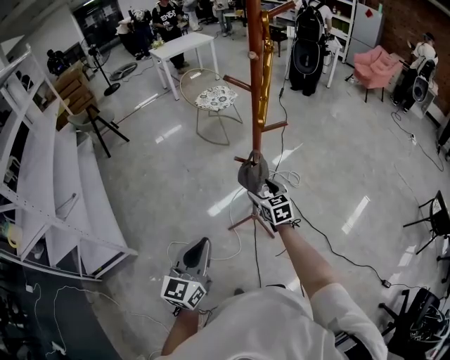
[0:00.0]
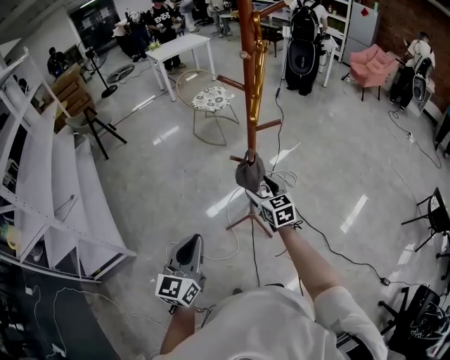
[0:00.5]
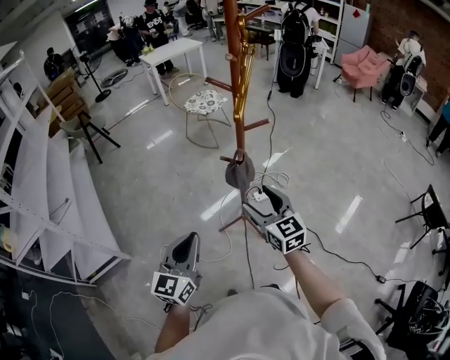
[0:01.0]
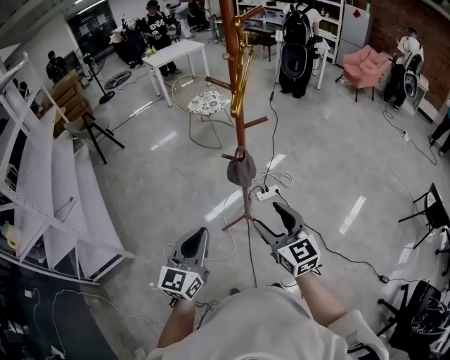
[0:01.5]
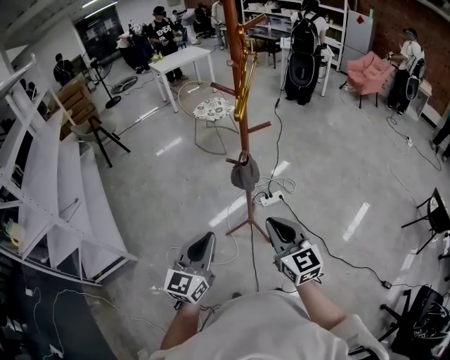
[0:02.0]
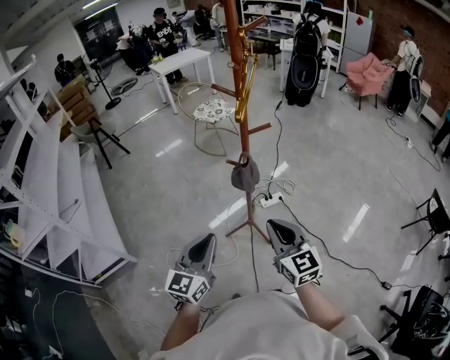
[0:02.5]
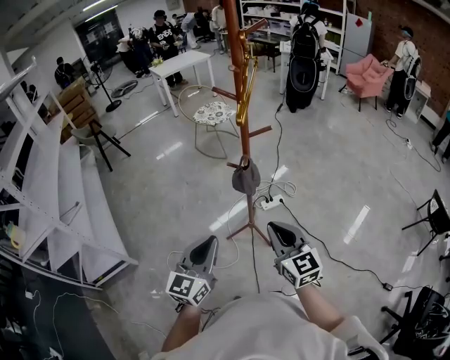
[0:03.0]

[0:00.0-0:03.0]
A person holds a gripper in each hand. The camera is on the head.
0:00.0 to 0:01.5: The right gripper travels backward and upward by about 25 cm. The left gripper changes place by about 5 cm.
0:01.5 to 0:03.0: The right gripper closes its fingers.

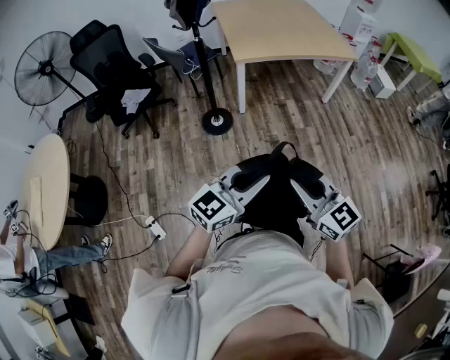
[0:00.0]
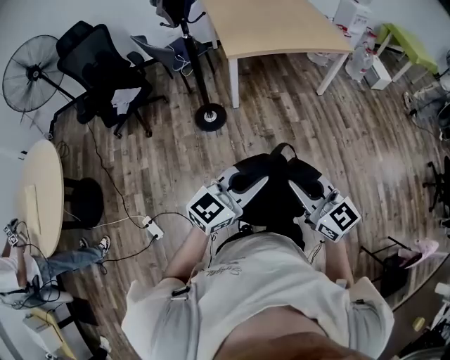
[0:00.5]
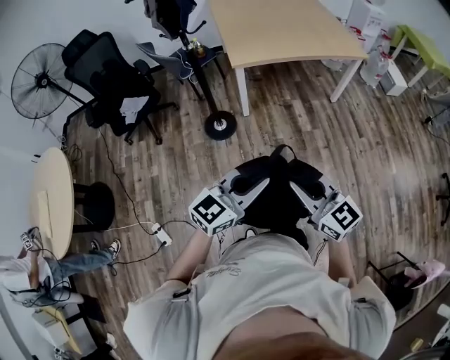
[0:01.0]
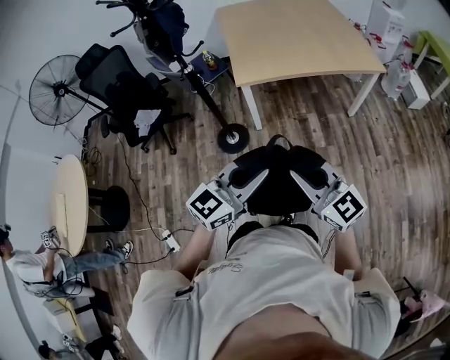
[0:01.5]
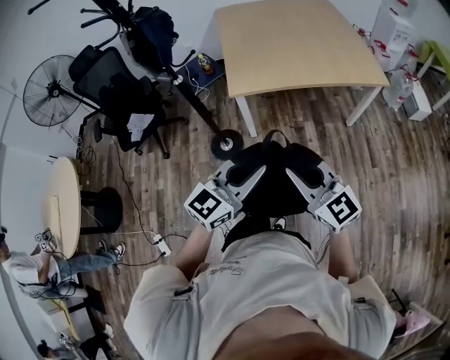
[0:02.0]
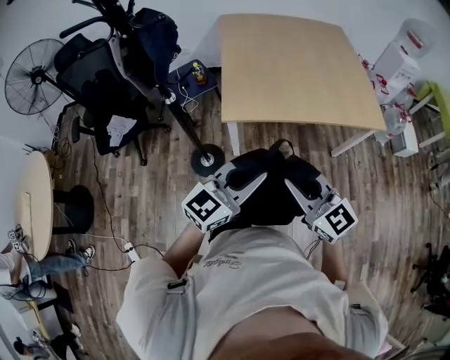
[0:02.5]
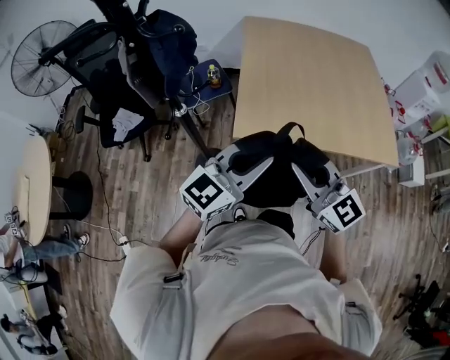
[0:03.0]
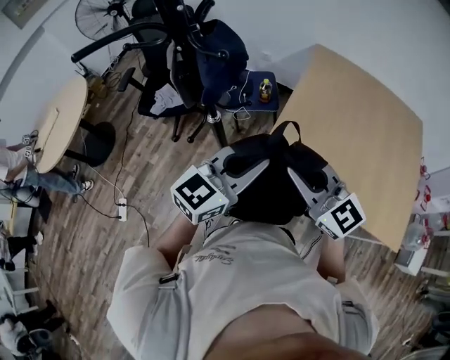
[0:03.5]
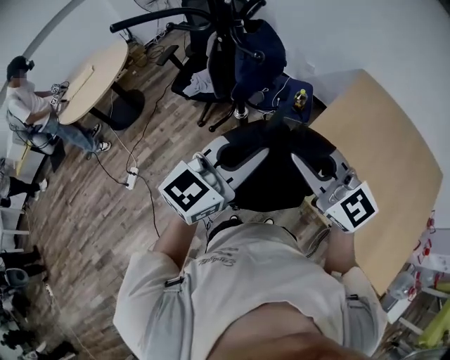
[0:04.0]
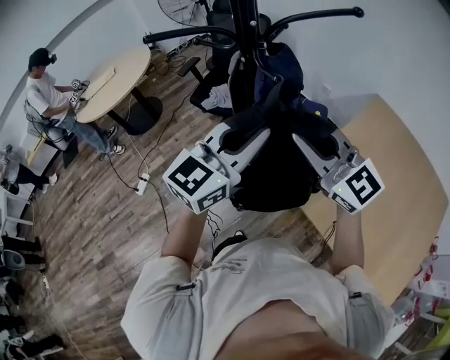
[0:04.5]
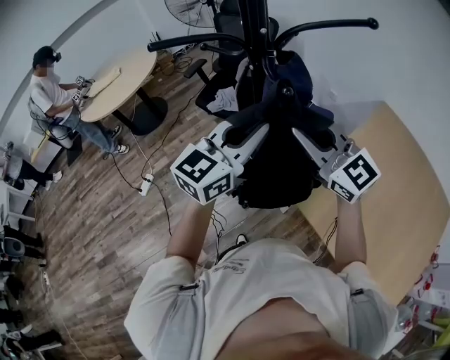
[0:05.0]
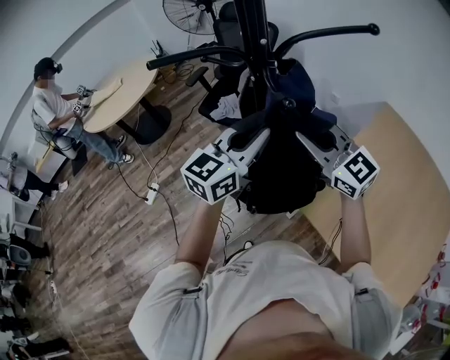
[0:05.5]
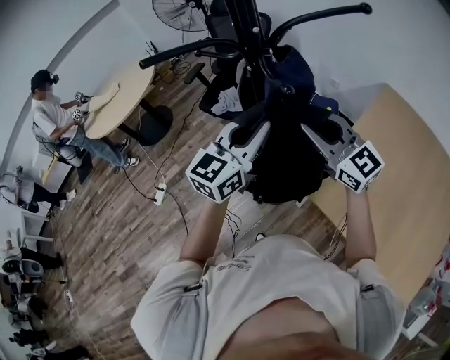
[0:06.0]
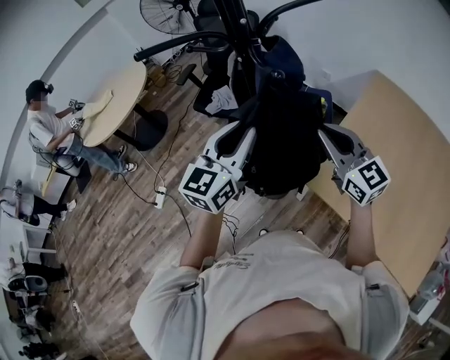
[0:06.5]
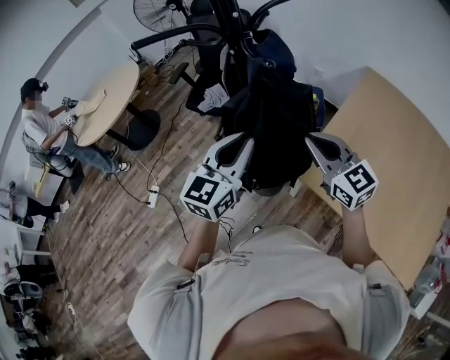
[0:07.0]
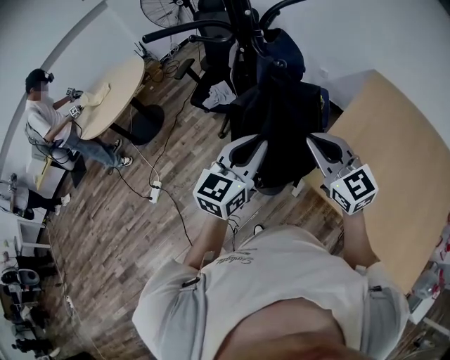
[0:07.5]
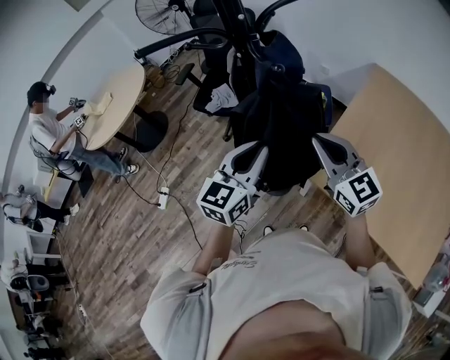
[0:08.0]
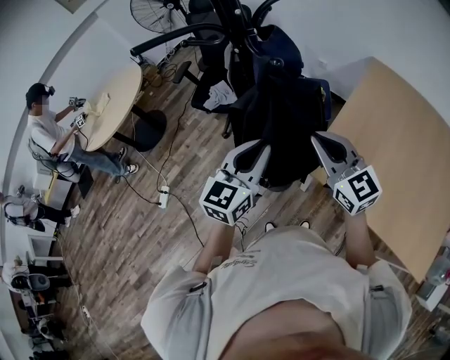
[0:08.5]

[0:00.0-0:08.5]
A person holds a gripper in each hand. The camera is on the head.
0:00.0 to 0:02.0: The two grippers go roughly 35 cm forward.
0:02.0 to 0:04.0: The right gripper shifts by roughly 50 cm, and rotates approximately 50 degrees. The left gripper moves approximately 40 cm, and swivels roughly 50 degrees.
0:04.0 to 0:06.5: The left gripper travels forward and to the left by about 10 cm, and swivels about 20 degrees. The right gripper heads forward, covering roughly 10 cm.
0:06.5 to 0:08.5: The left gripper shifts approximately 5 cm downward; the right gripper shifts by roughly 5 cm.

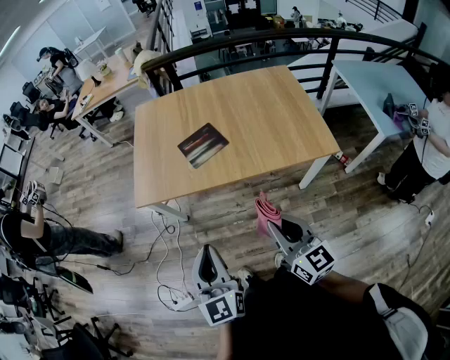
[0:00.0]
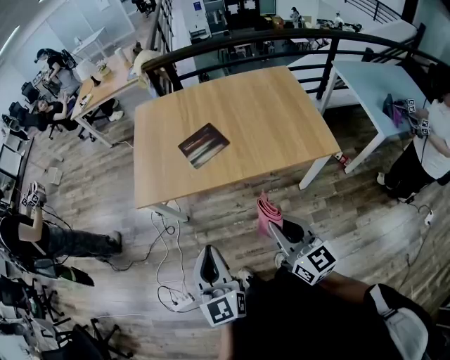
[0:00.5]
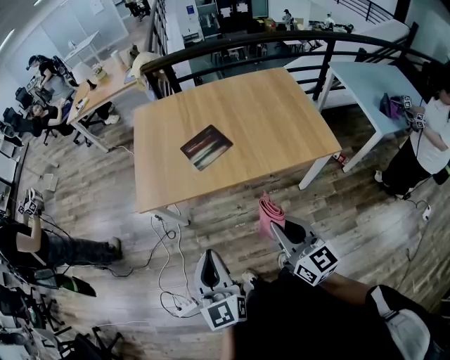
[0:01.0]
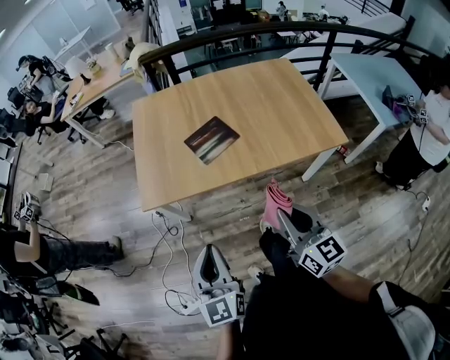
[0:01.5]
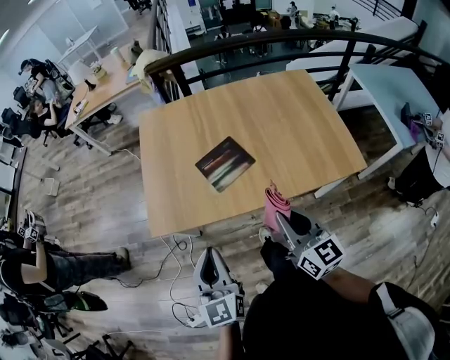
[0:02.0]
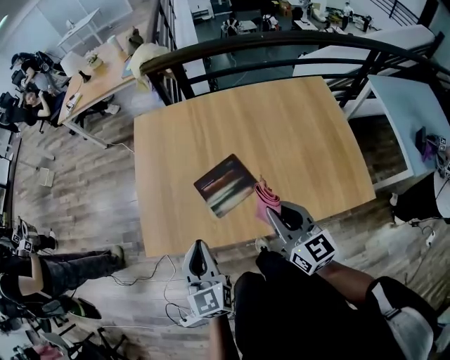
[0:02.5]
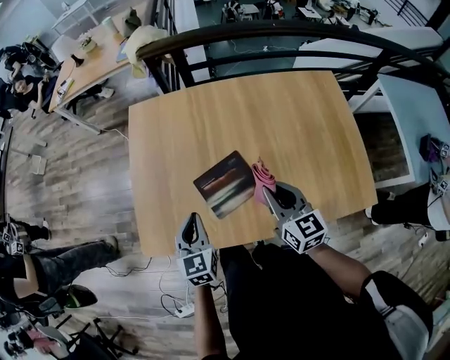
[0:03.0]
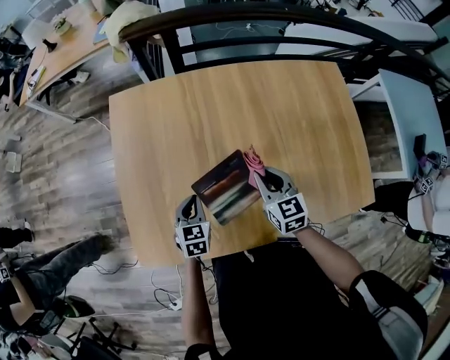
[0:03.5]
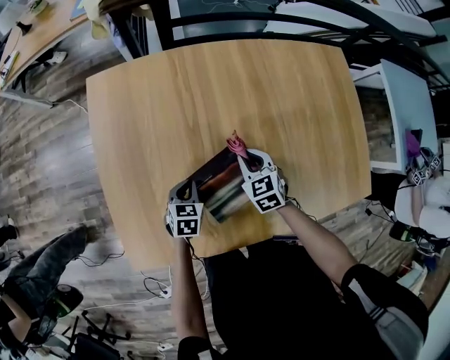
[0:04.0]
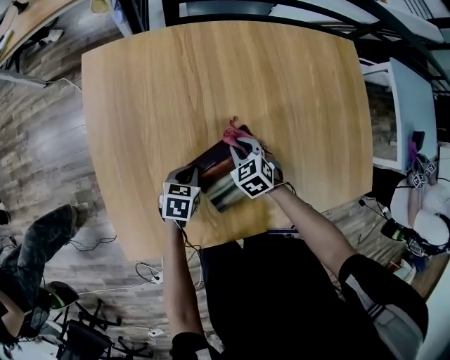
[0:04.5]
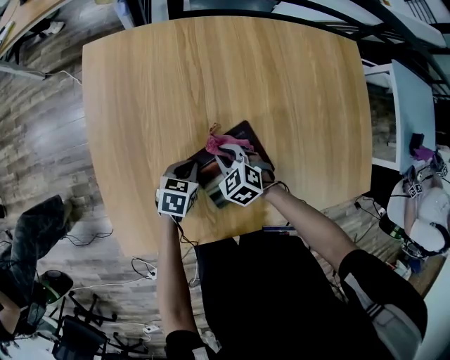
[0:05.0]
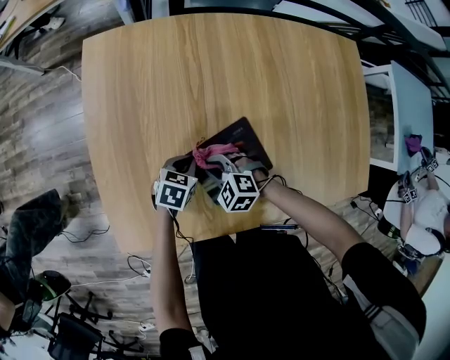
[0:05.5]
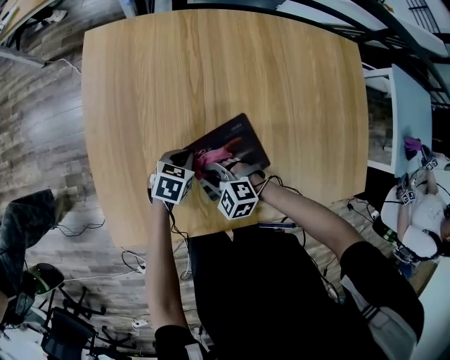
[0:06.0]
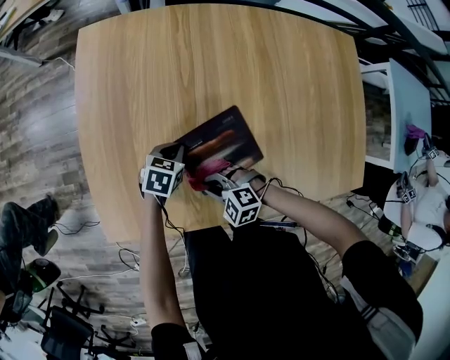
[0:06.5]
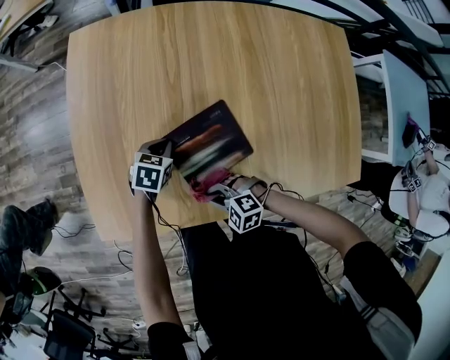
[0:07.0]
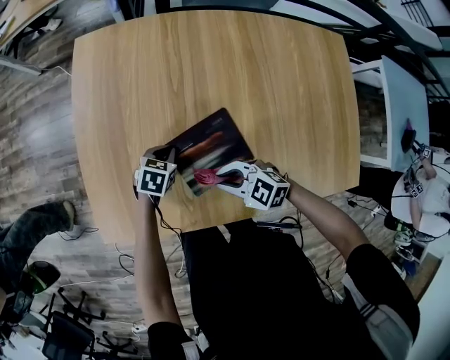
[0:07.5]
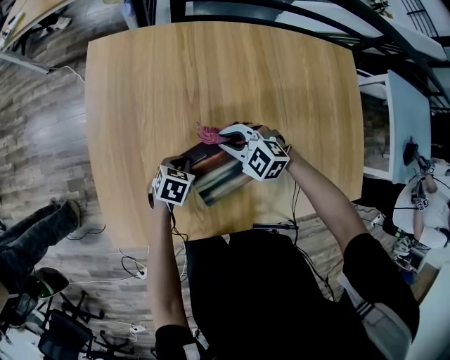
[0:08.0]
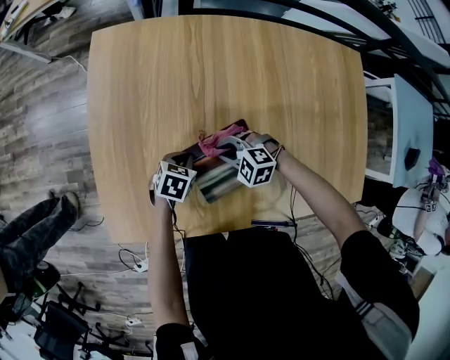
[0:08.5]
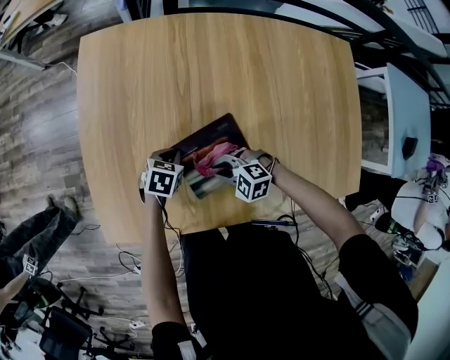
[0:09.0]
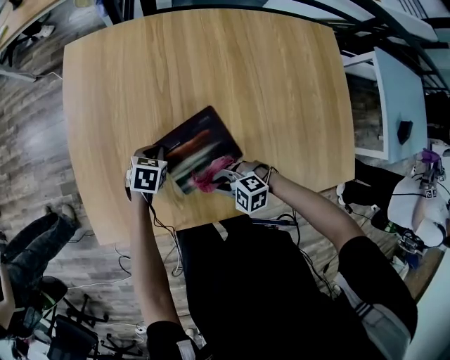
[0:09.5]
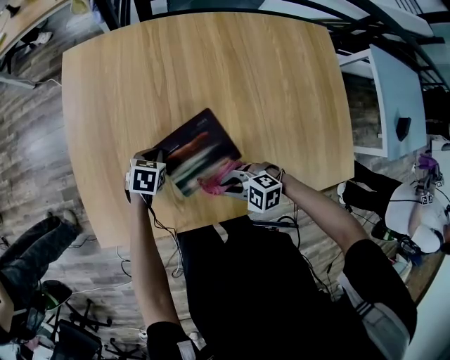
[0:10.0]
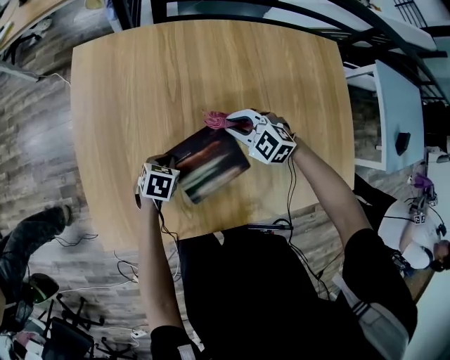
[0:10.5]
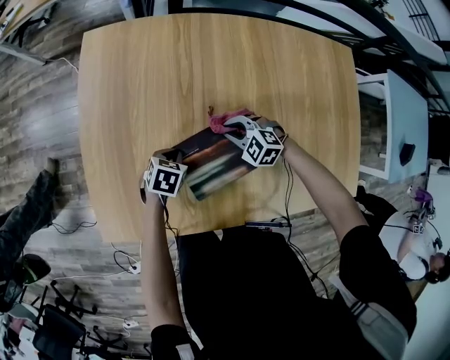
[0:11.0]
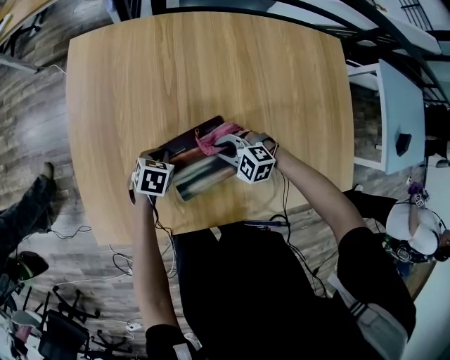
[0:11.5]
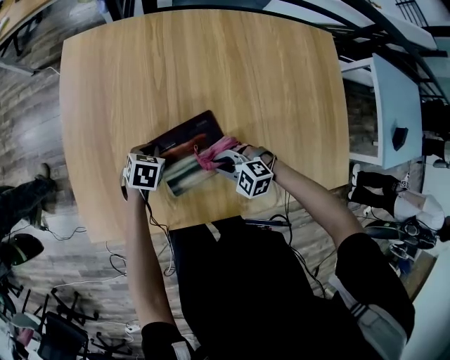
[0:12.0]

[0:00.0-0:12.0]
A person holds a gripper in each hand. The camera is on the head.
0:00.0 to 0:02.0: The two grippers go about 20 cm forward.
0:02.0 to 0:04.0: The pair of grippers is taken forward, some 40 cm. The grippers both shift downward by about 35 cm. The left gripper tilts its fingers about 50 degrees downward. The right gripper tips its fingers downward by roughly 40 degrees.
0:04.0 to 0:06.0: The right gripper changes place by approximately 20 cm, and rotates roughly 60 degrees.
0:06.0 to 0:08.0: The right gripper changes place by about 15 cm.
0:08.0 to 0:10.0: The right gripper ends up some 25 cm from where it was, and swivels roughly 20 degrees.

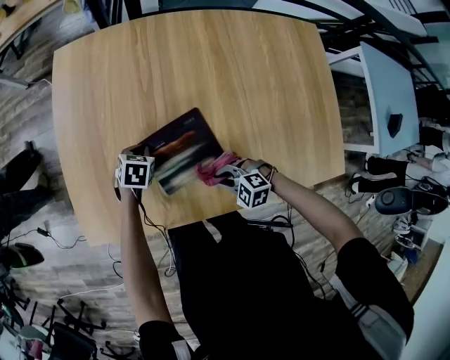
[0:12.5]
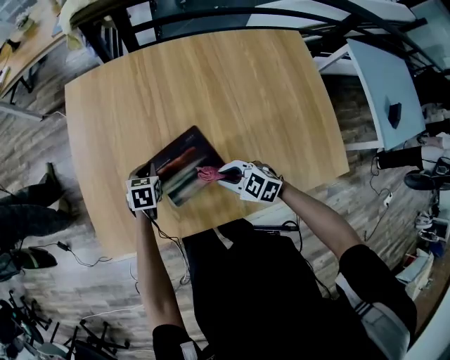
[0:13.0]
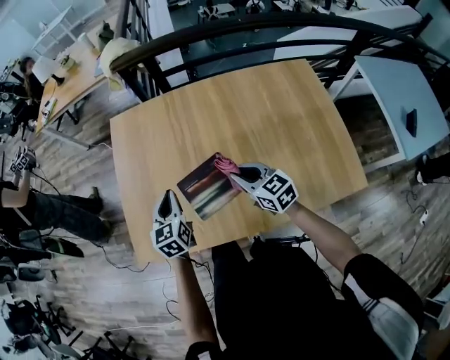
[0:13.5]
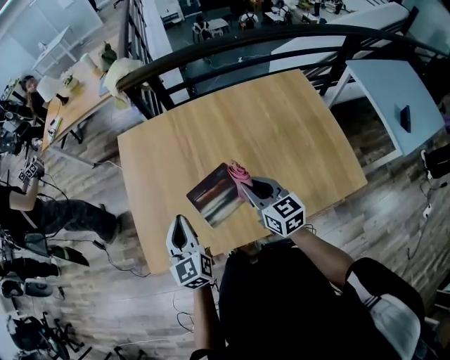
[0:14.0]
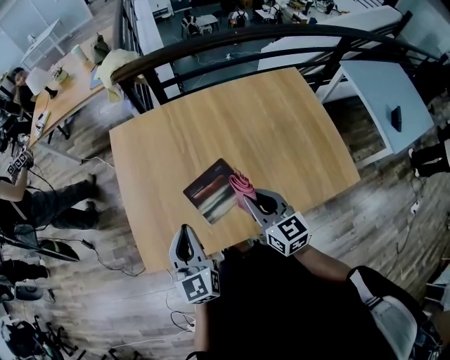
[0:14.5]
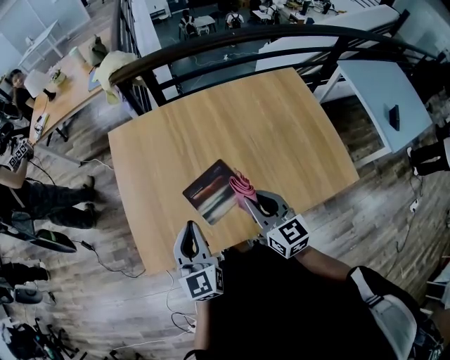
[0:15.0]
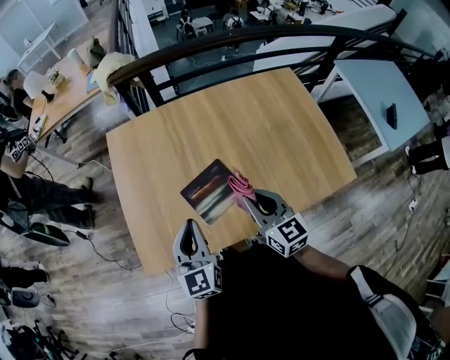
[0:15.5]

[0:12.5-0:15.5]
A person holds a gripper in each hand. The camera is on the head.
0:12.5 to 0:14.0: Both grippers travel together upward, some 30 cm. The right gripper points its fingers some 40 degrees further upward. The left gripper angles its fingers upward, by some 50 degrees.
0:14.0 to 0:15.5: The right gripper changes place by some 5 cm.
